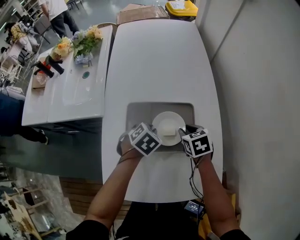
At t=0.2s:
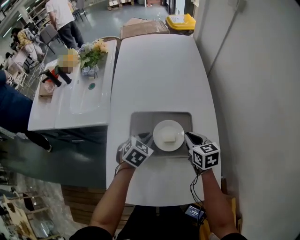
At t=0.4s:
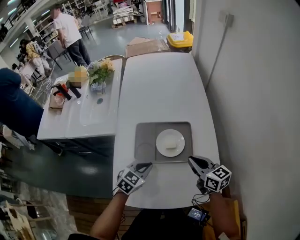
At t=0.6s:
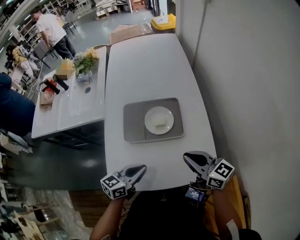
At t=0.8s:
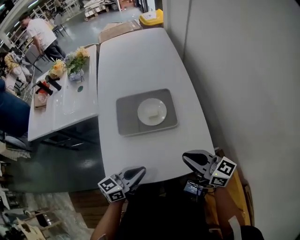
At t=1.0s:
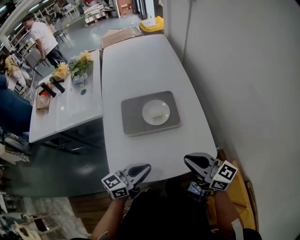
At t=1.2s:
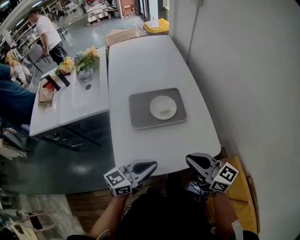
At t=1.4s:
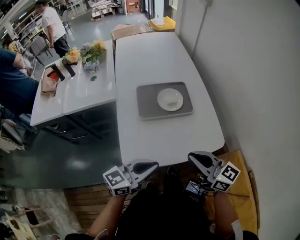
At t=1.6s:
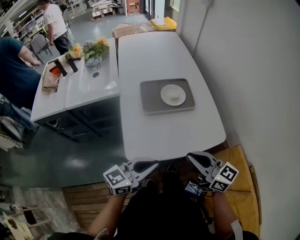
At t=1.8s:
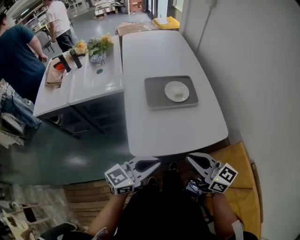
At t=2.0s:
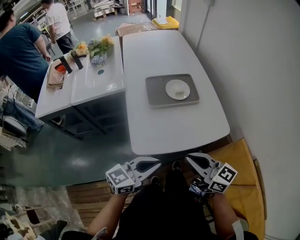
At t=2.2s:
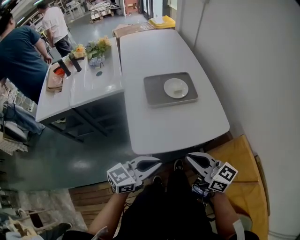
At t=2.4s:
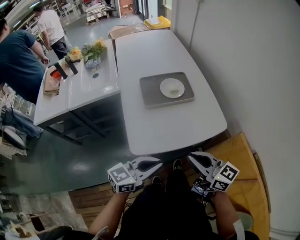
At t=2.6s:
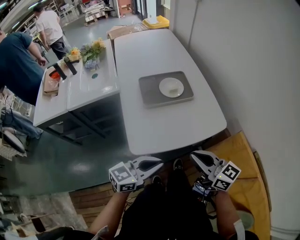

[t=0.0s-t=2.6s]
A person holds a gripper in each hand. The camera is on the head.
t=0.0s to t=1.2s: The two grippers go some 40 cm backward and upward. The right gripper tilts its fingers about 50 degrees upward, and closes its fingers. The left gripper points its fingers some 60 degrees further upward.
t=1.2s to t=2.6s: Both grippers travel together backward, some 15 cm.

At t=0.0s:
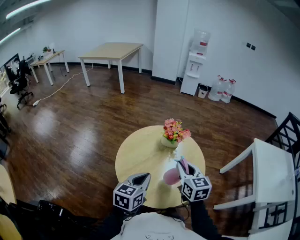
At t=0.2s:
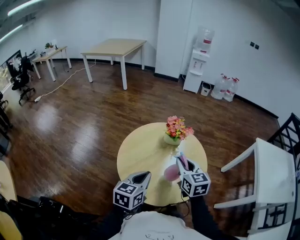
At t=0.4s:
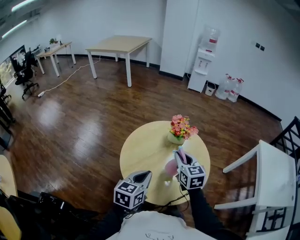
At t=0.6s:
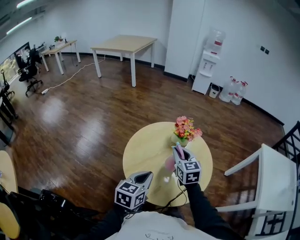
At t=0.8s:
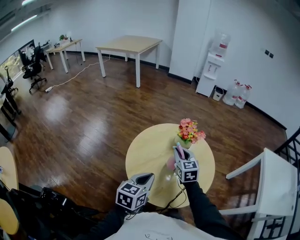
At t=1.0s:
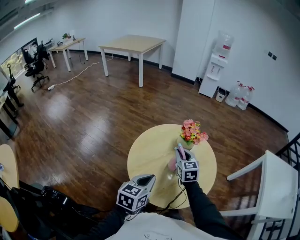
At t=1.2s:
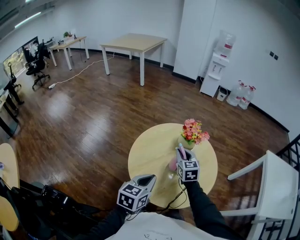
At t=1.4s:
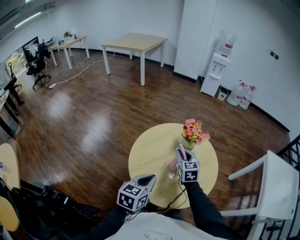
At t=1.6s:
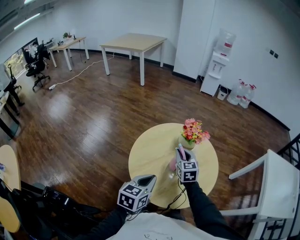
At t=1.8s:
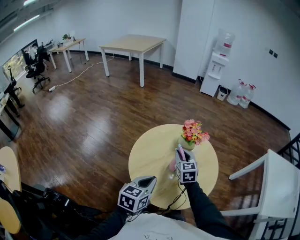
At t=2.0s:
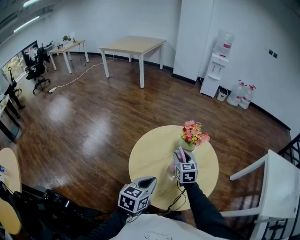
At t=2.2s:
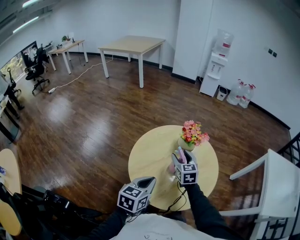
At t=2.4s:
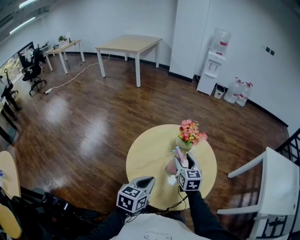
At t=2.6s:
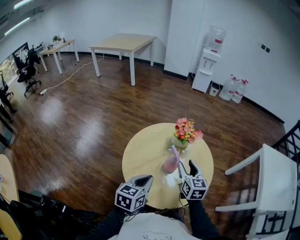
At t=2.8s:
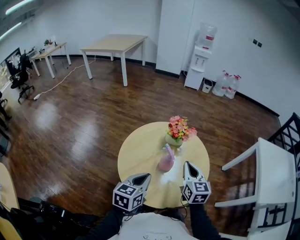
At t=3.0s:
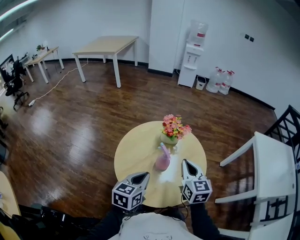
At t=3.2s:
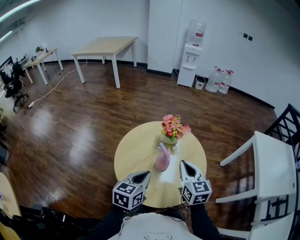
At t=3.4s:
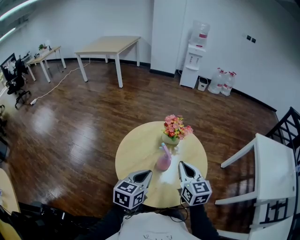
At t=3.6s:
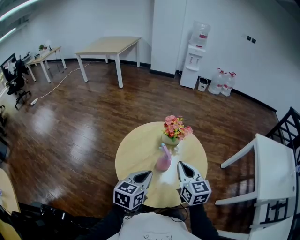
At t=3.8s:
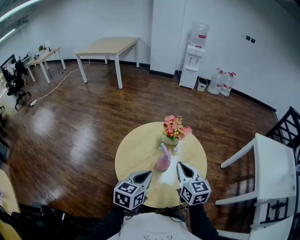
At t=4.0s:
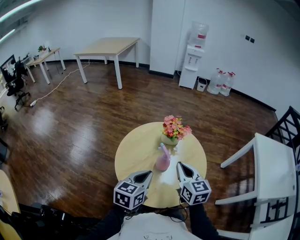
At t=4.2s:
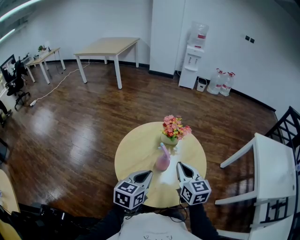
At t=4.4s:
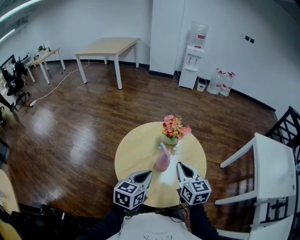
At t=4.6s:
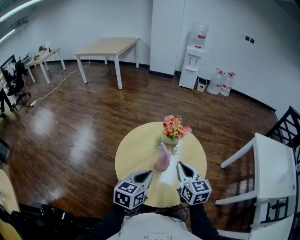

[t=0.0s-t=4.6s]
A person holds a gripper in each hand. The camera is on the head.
t=0.0s to t=1.6s: The right gripper heads forward, downward and to the left, covering approximately 15 cm.
t=1.6s to t=3.0s: The right gripper heads to the right, backward and upward, covering some 15 cm, and opens and closes again.
t=3.0s to t=4.6s: The grippers make only small movements.

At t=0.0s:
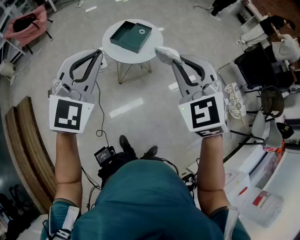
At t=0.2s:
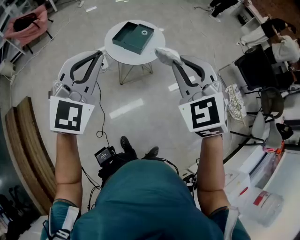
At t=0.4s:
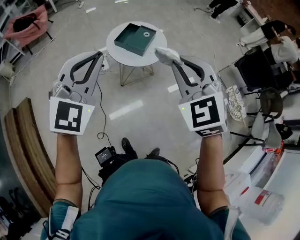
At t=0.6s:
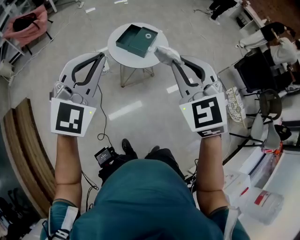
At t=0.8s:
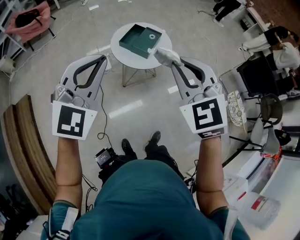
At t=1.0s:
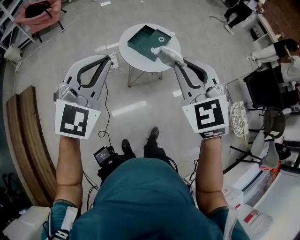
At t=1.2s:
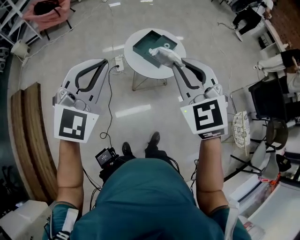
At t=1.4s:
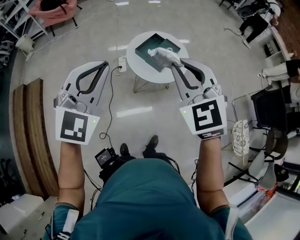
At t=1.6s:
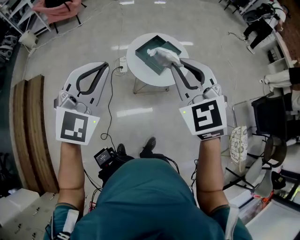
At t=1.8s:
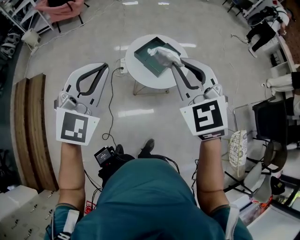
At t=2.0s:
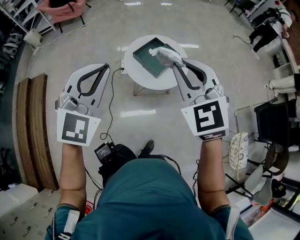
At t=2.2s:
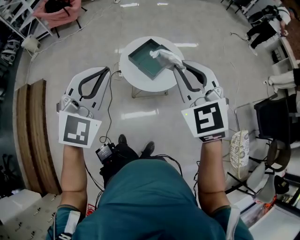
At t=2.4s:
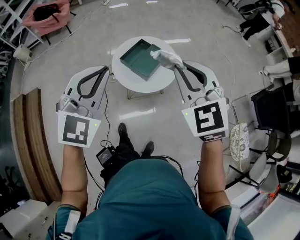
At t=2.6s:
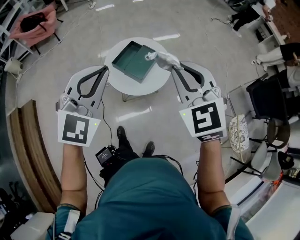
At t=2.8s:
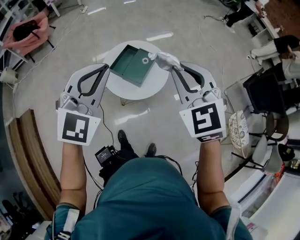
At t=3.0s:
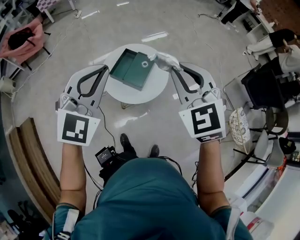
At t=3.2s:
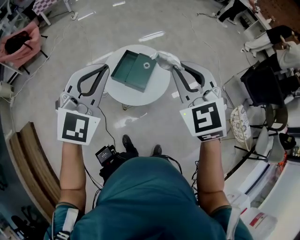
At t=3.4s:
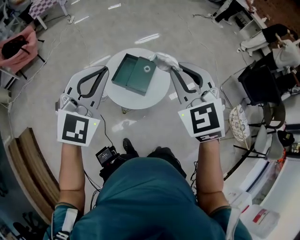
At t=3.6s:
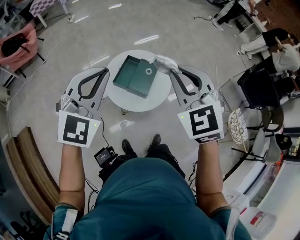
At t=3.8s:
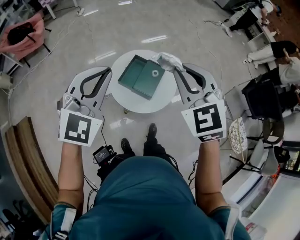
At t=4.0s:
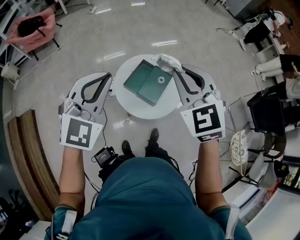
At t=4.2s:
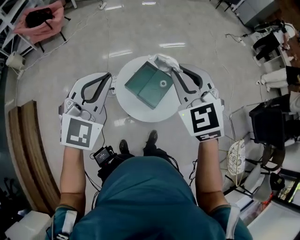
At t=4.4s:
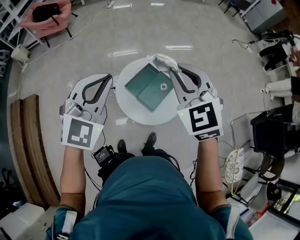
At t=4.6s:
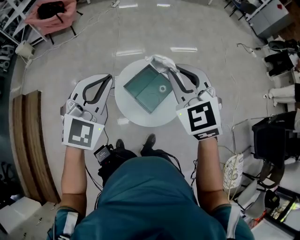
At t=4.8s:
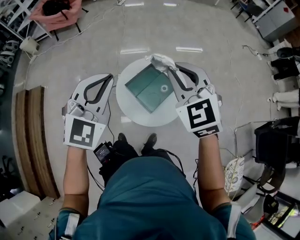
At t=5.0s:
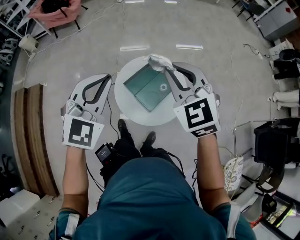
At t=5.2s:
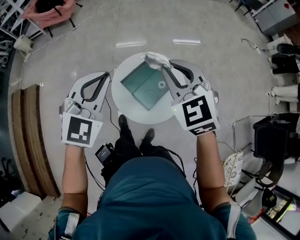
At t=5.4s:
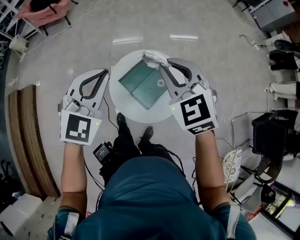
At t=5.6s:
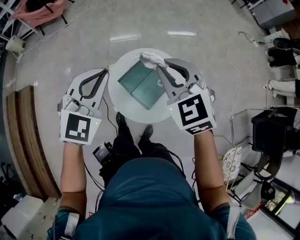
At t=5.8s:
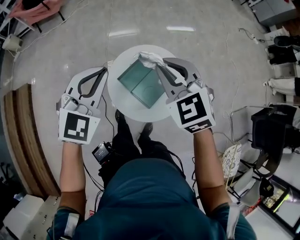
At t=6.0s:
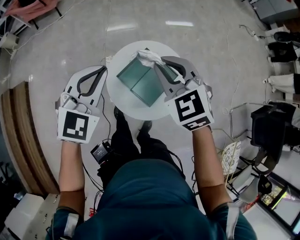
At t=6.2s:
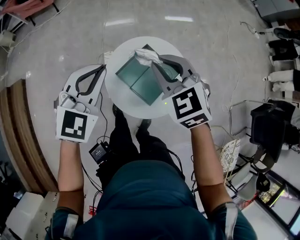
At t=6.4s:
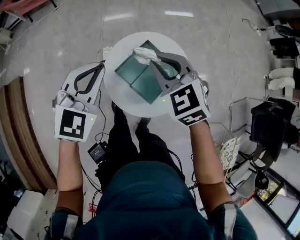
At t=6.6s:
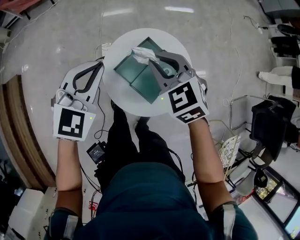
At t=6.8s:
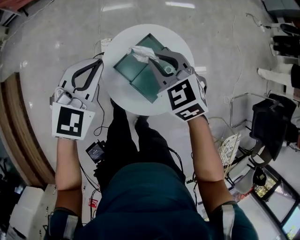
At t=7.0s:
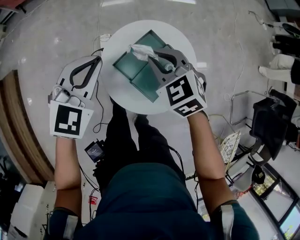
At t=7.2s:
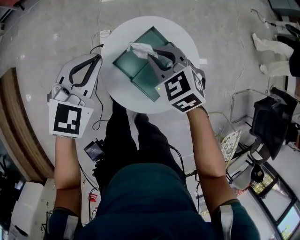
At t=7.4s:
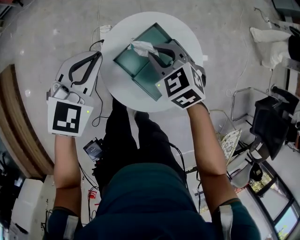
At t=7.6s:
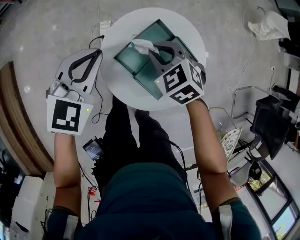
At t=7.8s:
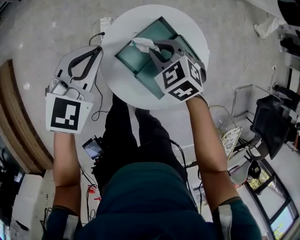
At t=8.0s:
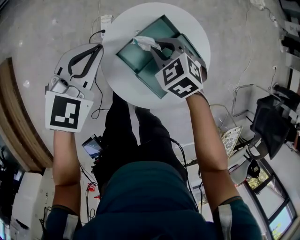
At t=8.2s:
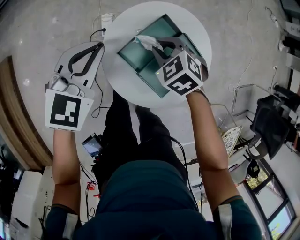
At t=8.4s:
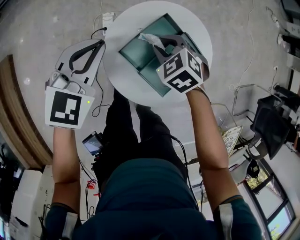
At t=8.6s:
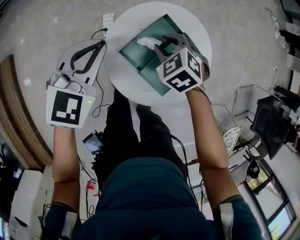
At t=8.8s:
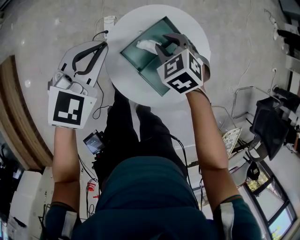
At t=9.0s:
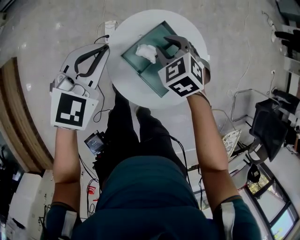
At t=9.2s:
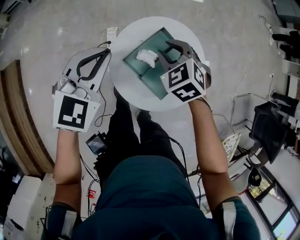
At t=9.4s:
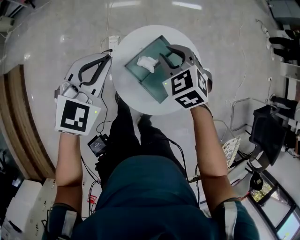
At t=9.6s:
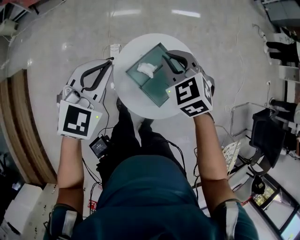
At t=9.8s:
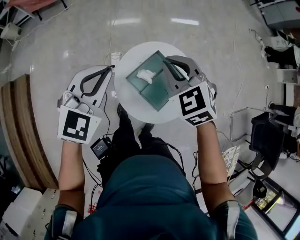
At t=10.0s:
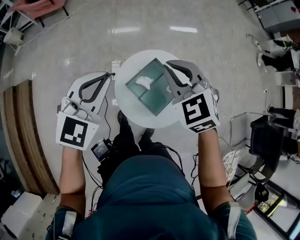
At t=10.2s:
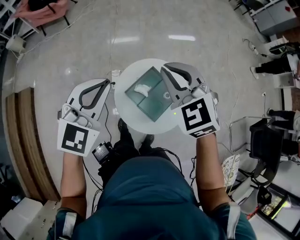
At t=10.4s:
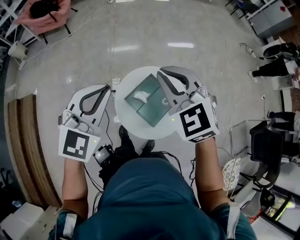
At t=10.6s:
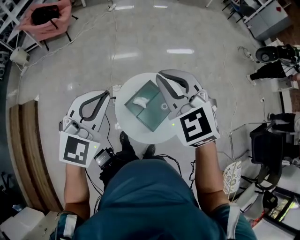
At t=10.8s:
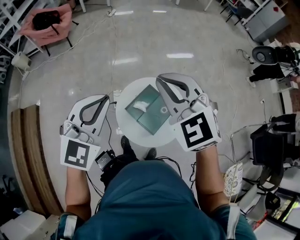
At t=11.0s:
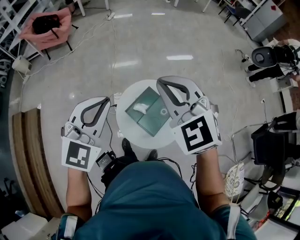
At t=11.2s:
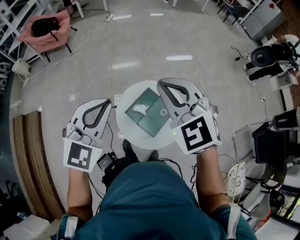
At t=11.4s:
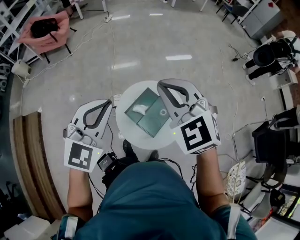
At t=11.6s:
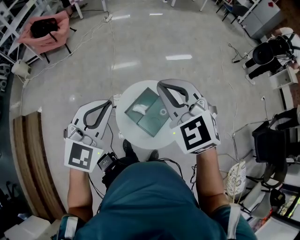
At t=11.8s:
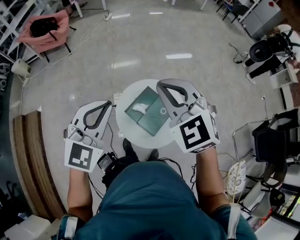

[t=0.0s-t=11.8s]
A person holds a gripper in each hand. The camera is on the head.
t=0.0s to t=1.4s: The left gripper goes some 10 cm forward and to the left. The right gripper heads forward and to the left, covering approximately 15 cm.
t=1.4s to t=3.0s: Both grippers move forward and to the right, approximately 20 cm.
t=3.0s to t=4.4s: Both grippers move forward and to the left, some 15 cm.
t=4.4s to t=6.0s: The two grippers go roughly 20 cm downward and forward.
t=6.0s to t=7.4s: The left gripper is displaced downward and forward by approximately 20 cm, while the right gripper travels downward by roughly 25 cm.
t=7.4s to t=8.8s: The right gripper shifts by roughly 5 cm.
t=8.8s to t=10.4s: Both grippers travel together upward, approximately 35 cm. The right gripper angles its fingers upward, by some 30 degrees, and closes.
t=10.4s to t=11.8s: The left gripper moves approximately 5 cm. Meanwhile the right gripper shifts about 5 cm upward.

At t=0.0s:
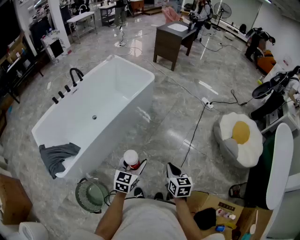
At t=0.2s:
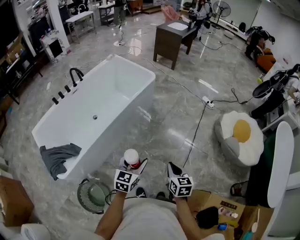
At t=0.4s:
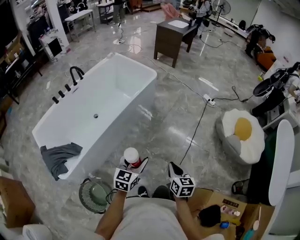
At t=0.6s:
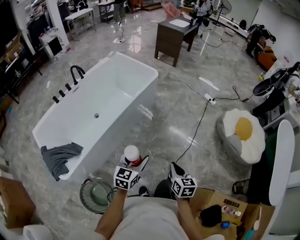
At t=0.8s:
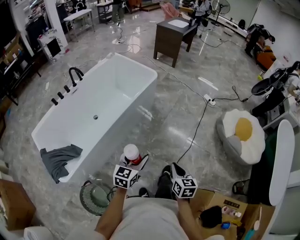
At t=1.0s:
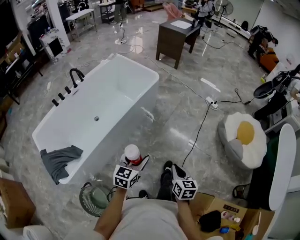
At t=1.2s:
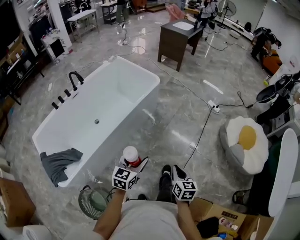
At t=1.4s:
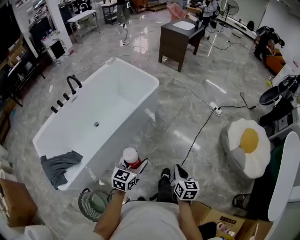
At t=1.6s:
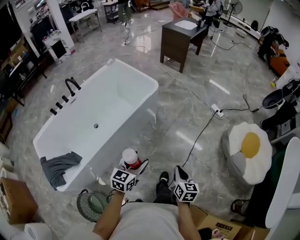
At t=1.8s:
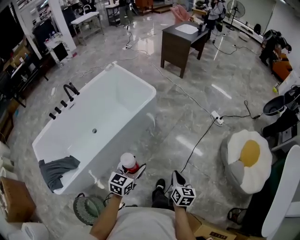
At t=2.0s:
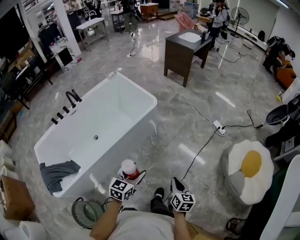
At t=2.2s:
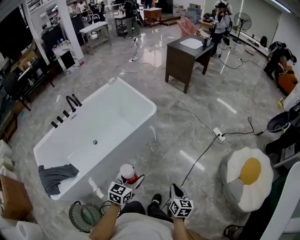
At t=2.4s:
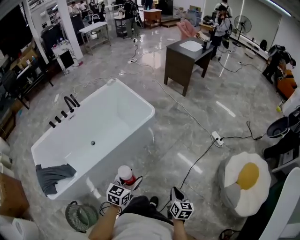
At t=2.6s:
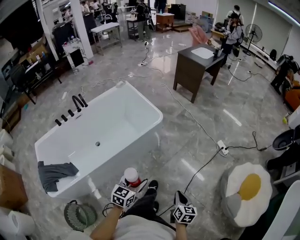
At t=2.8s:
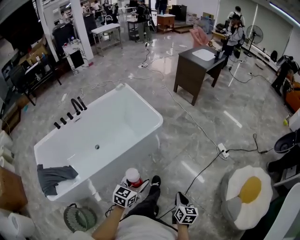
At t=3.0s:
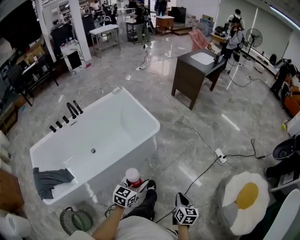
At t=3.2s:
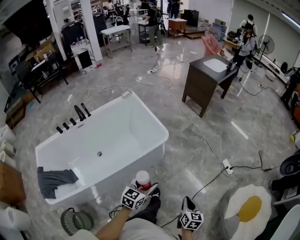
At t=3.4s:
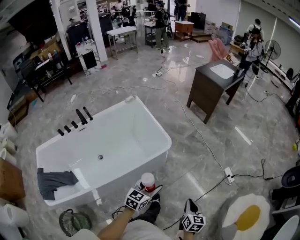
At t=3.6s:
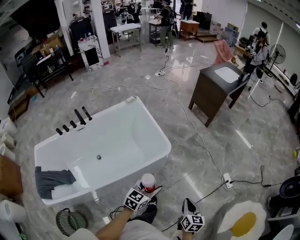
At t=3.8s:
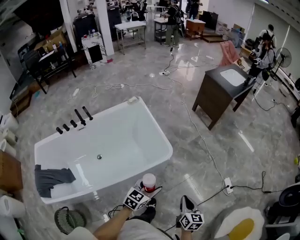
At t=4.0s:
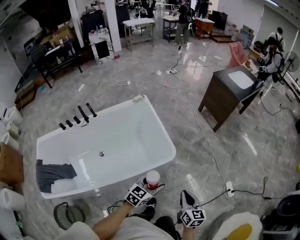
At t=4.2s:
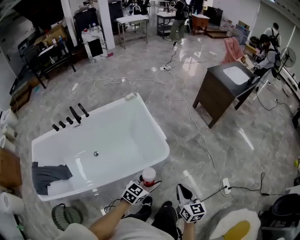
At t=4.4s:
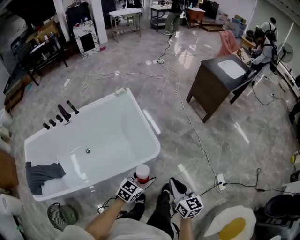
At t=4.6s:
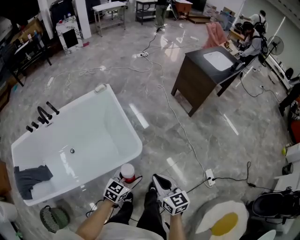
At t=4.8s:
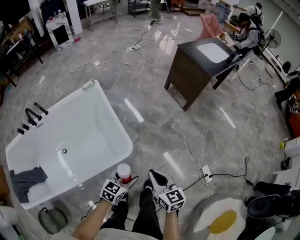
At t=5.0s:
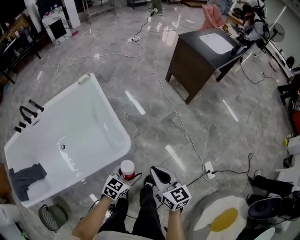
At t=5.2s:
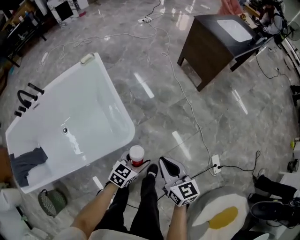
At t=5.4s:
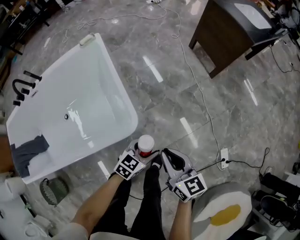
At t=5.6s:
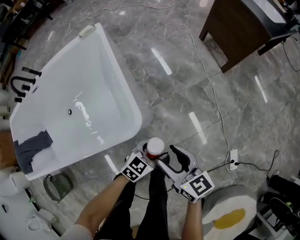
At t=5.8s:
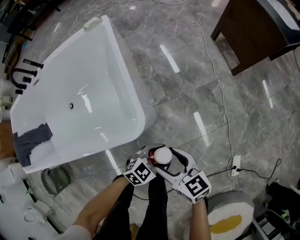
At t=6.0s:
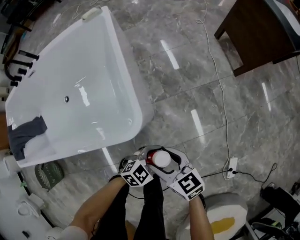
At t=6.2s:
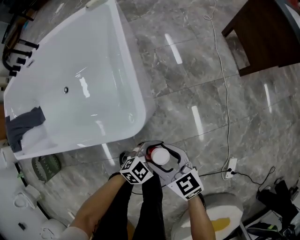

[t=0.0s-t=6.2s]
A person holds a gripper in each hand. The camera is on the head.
t=0.0s to t=1.6s: The grippers both shift forward by about 20 cm.
t=1.6s to t=3.2s: The grippers both shift forward by roughly 30 cm.
t=3.2s to t=4.6s: Both grippers travel together forward, approximately 35 cm. The right gripper rotates about 40 degrees.
t=4.6s to t=6.2s: Both grippers travel together downward, about 30 cm. The right gripper turns by roughly 40 degrees, and opens.
